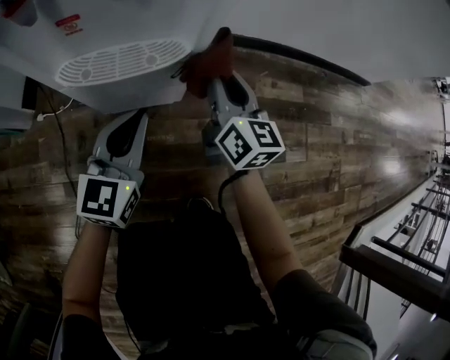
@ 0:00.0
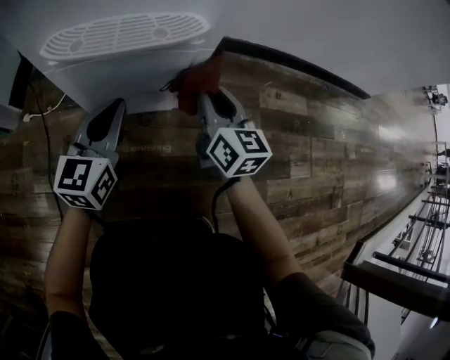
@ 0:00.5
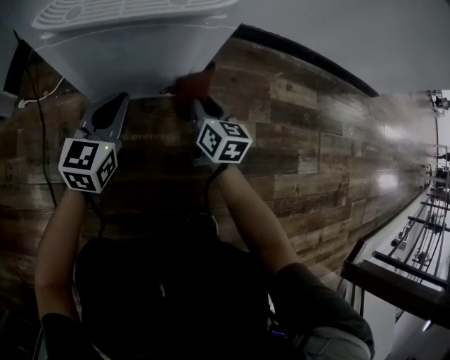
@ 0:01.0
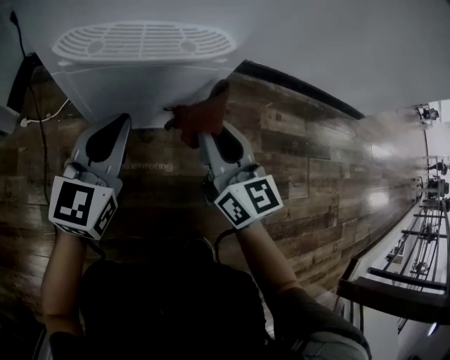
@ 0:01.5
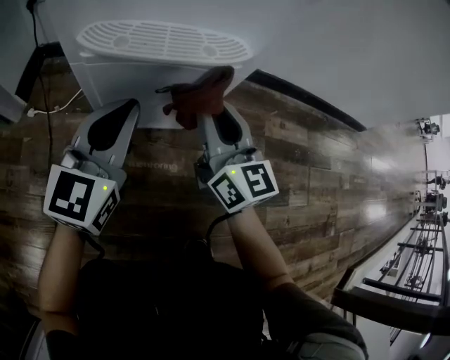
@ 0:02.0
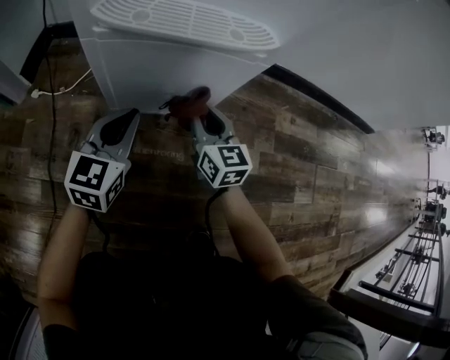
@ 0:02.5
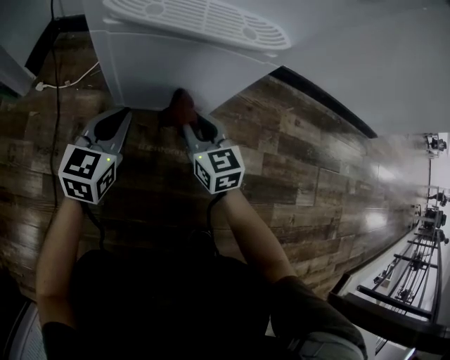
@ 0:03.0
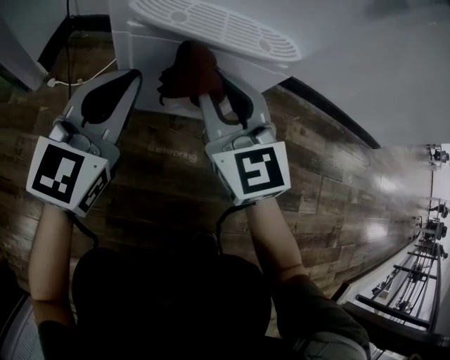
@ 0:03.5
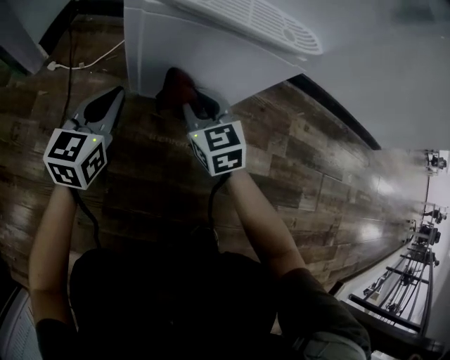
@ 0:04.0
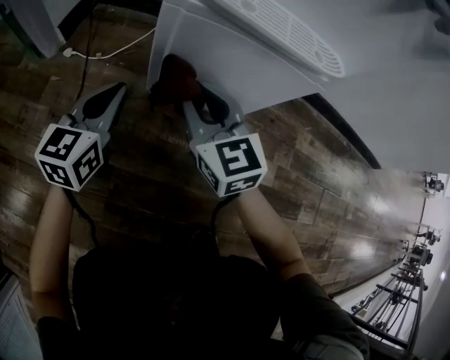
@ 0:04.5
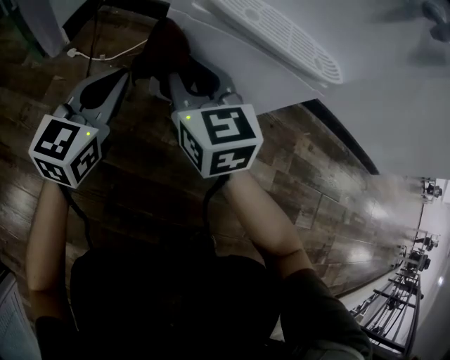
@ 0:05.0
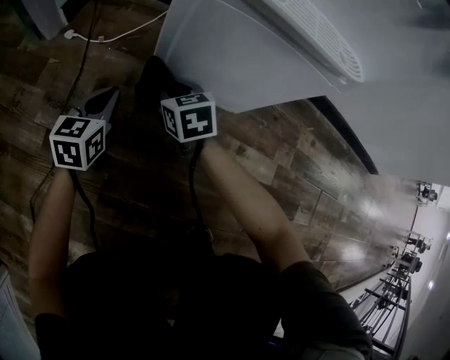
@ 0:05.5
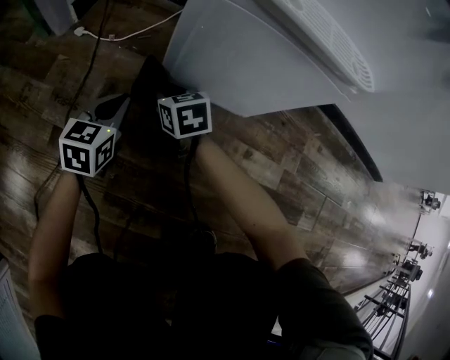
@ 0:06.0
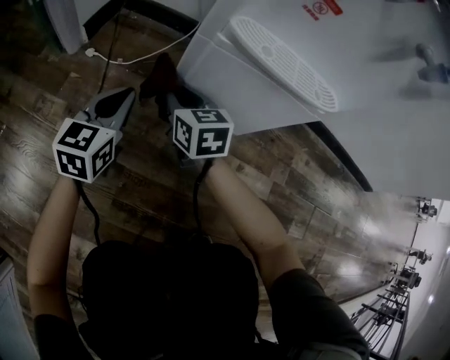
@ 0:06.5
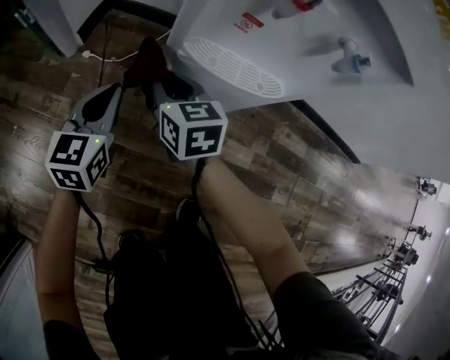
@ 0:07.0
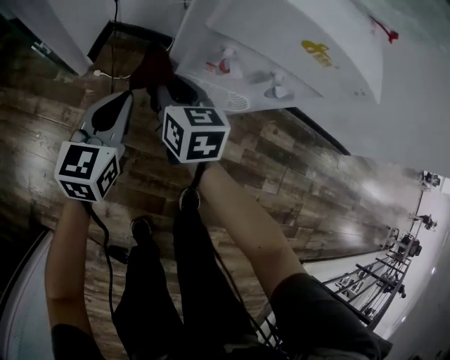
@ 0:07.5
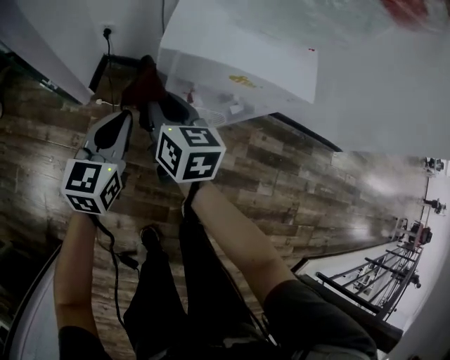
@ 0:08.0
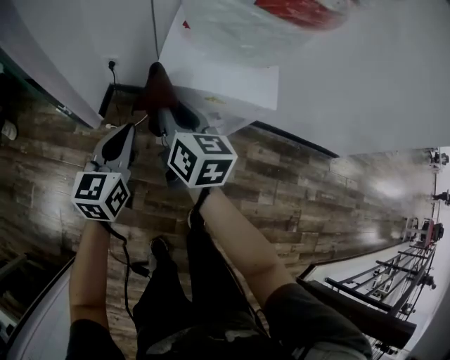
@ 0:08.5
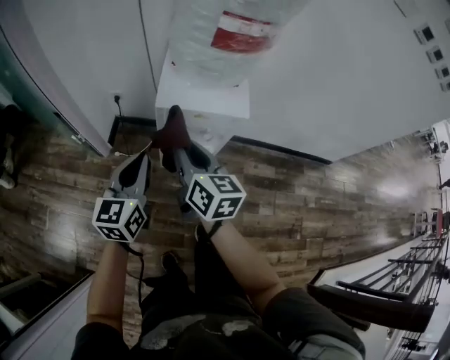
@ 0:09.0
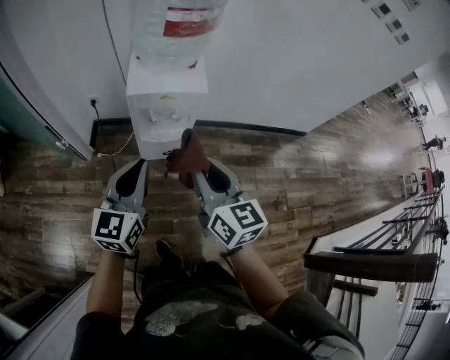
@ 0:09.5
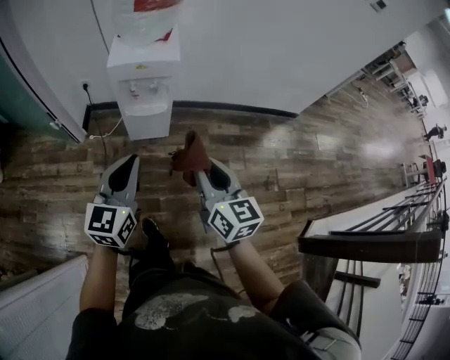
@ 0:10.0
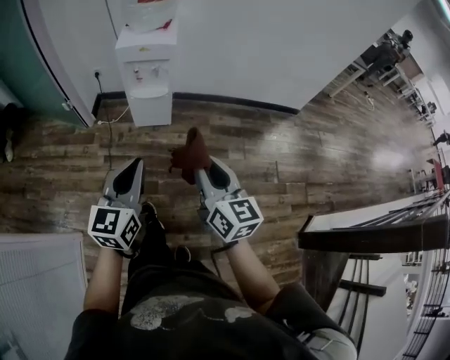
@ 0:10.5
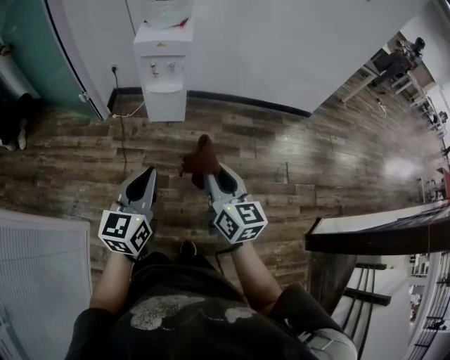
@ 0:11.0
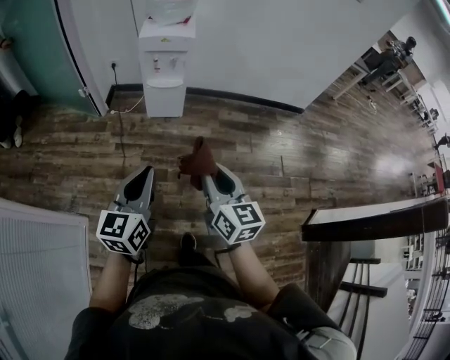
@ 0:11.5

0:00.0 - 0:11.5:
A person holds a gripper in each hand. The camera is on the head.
0:00.0 - 0:02.0: The two grippers go about 5 cm to the left. The right gripper goes downward and returns, some 25 cm each way. Meanwhile the left gripper goes downward and returns, about 20 cm each way.
0:02.0 - 0:04.0: The left gripper moves up and down over about 15 cm, changing direction 2 times, while the right gripper moves up and down over some 20 cm, changing direction 2 times, and rotates some 40 degrees.
0:04.0 - 0:06.0: The right gripper goes approximately 15 cm to the left and downward, and swivels approximately 20 degrees. The left gripper goes about 10 cm downward and to the left.
0:06.0 - 0:07.5: Both grippers travel together upward, about 50 cm. The right gripper turns by some 20 degrees.
0:07.5 - 0:09.5: The right gripper goes approximately 50 cm upward, backward and to the right, and turns by approximately 30 degrees. The left gripper moves upward and backward, about 40 cm, and rotates approximately 20 degrees.
0:09.5 - 0:11.5: The two grippers travel together, backward, about 40 cm.

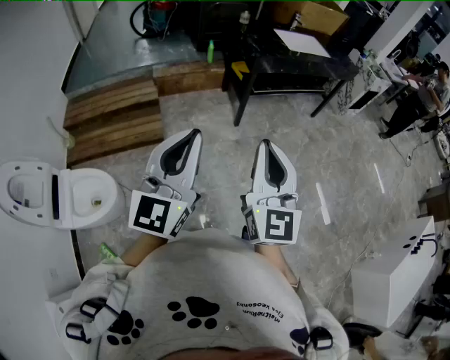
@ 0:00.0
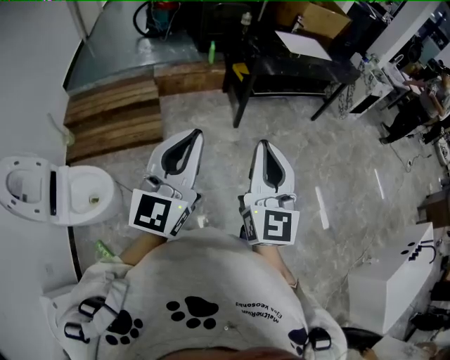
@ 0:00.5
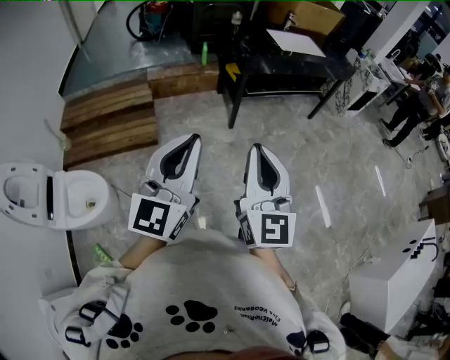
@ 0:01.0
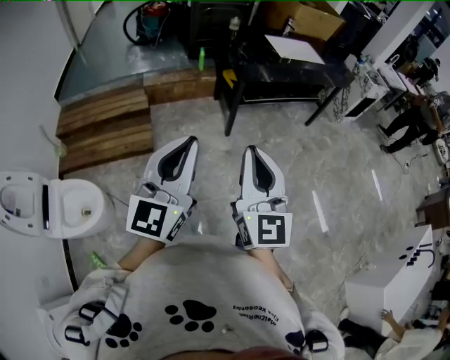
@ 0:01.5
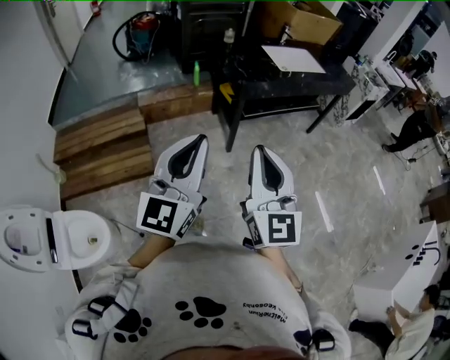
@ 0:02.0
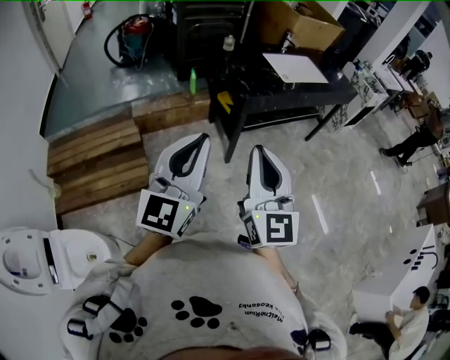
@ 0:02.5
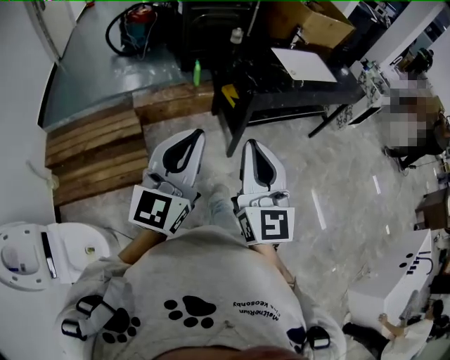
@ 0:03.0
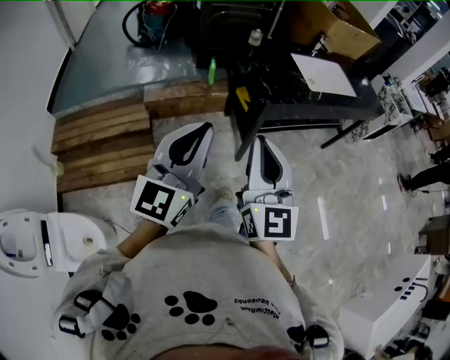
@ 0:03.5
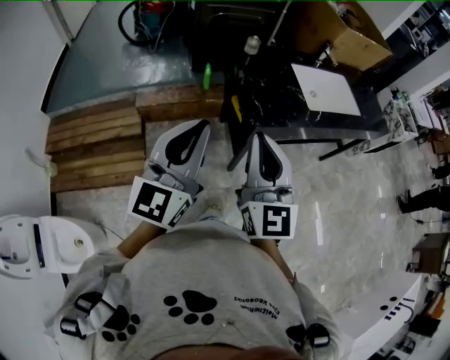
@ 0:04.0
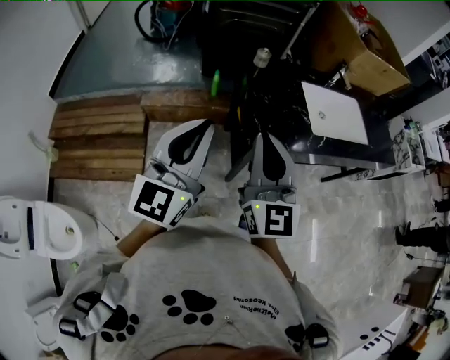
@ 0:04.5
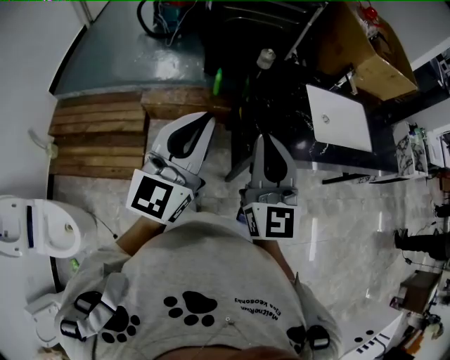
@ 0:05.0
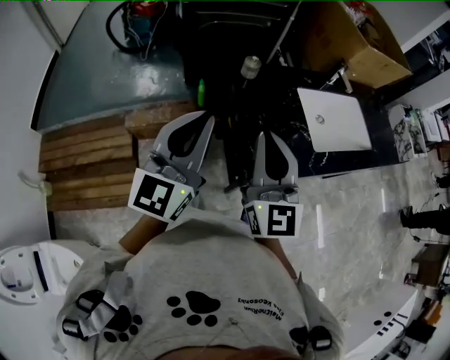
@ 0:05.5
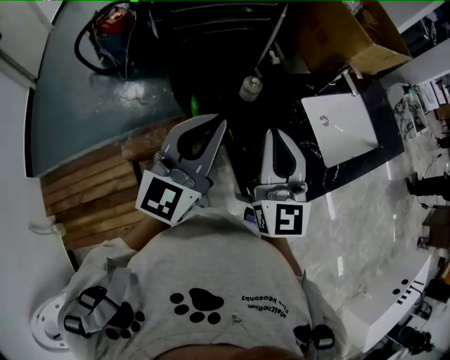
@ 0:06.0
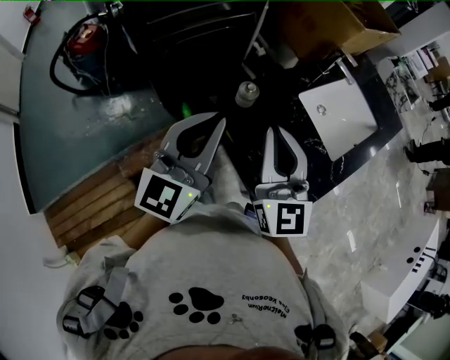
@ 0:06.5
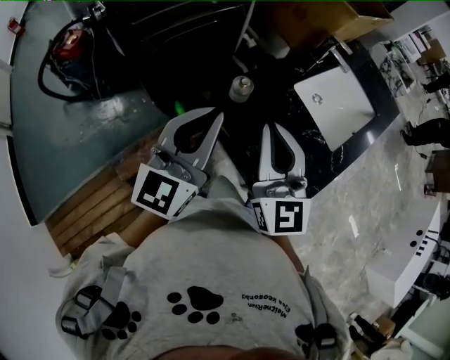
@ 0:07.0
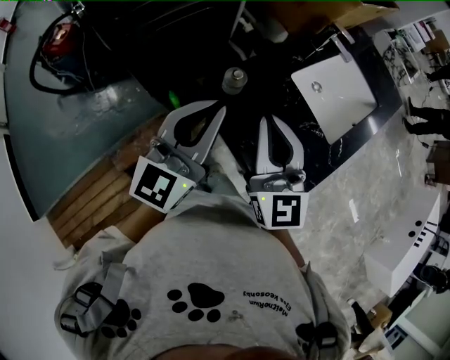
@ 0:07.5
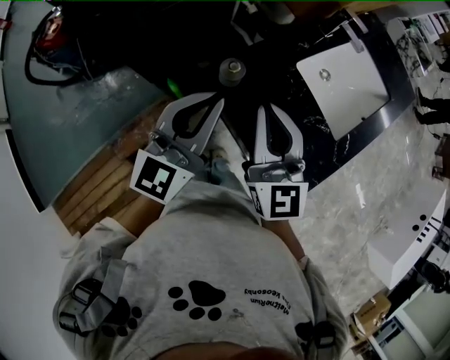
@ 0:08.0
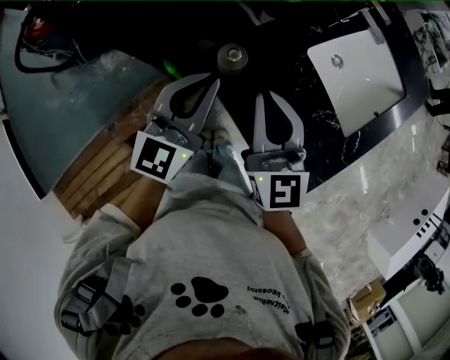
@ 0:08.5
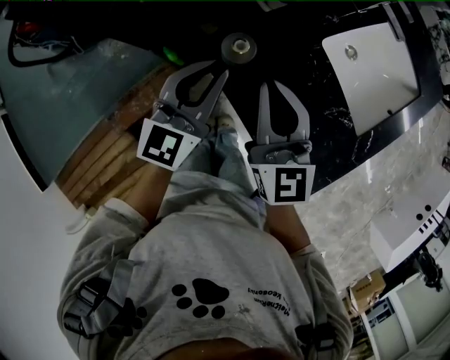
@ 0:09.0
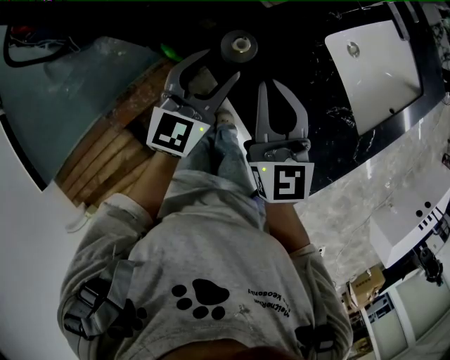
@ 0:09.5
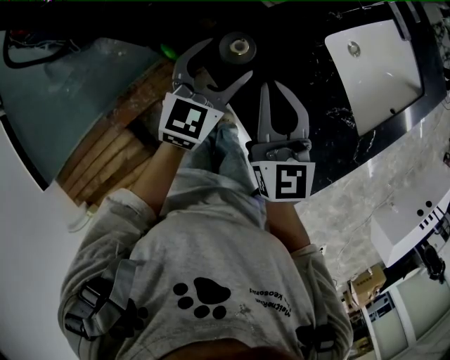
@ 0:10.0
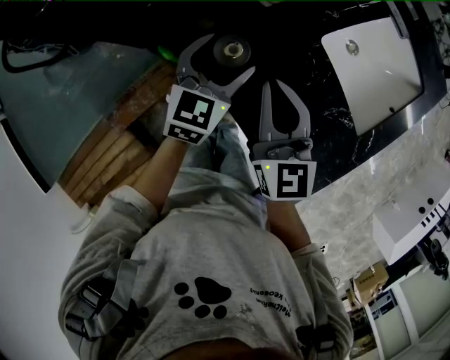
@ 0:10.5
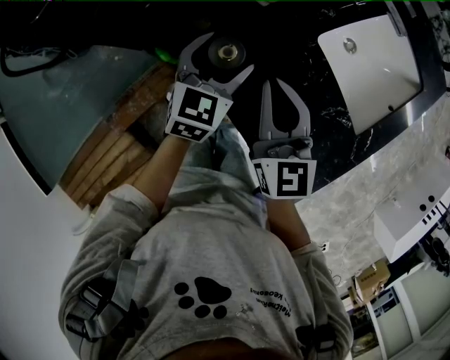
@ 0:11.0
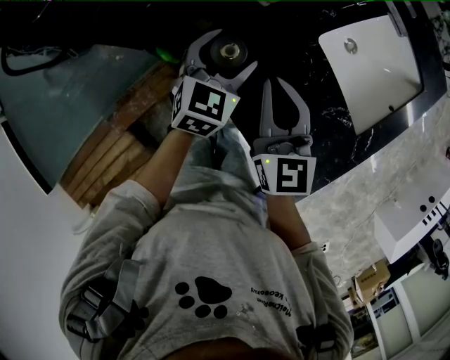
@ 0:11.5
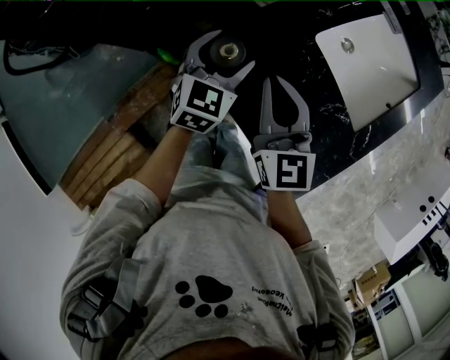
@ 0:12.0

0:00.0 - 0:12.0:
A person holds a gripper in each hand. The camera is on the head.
0:00.0 - 0:02.0: Both grippers travel together forward, about 20 cm.
0:02.0 - 0:04.0: Both grippers move forward, some 35 cm.
0:04.0 - 0:06.0: Both grippers move forward, approximately 40 cm.
0:06.0 - 0:08.0: Both grippers move forward and downward, approximately 15 cm.
0:08.0 - 0:10.0: The right gripper heads downward and forward, covering roughly 15 cm. Meanwhile the left gripper goes some 20 cm downward and forward, rotates approximately 20 degrees, and opens its fingers.
0:10.0 - 0:12.0: The grippers move only a little.

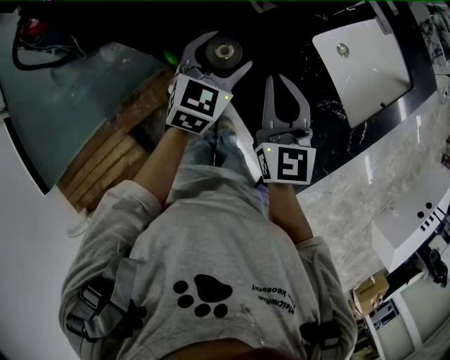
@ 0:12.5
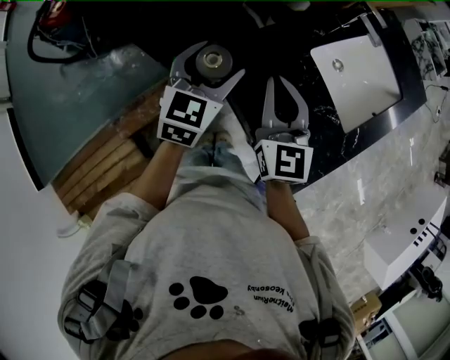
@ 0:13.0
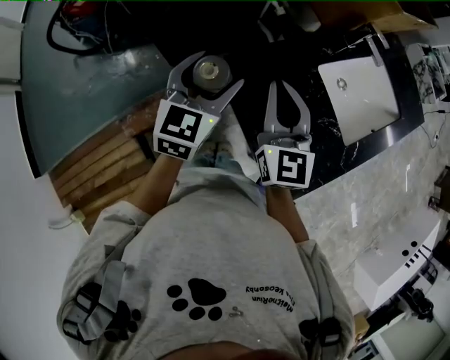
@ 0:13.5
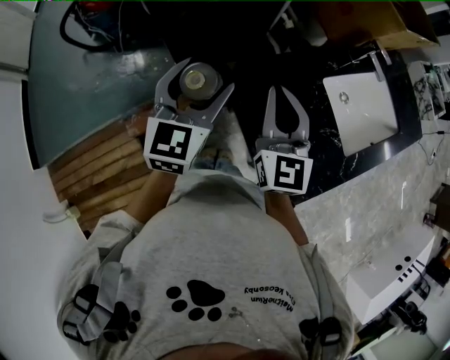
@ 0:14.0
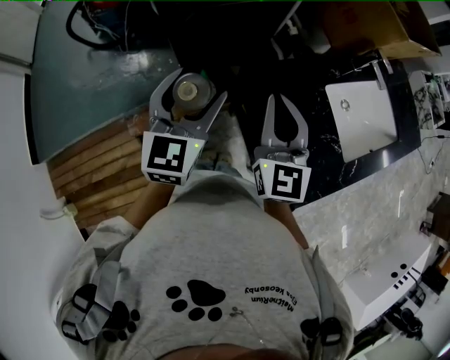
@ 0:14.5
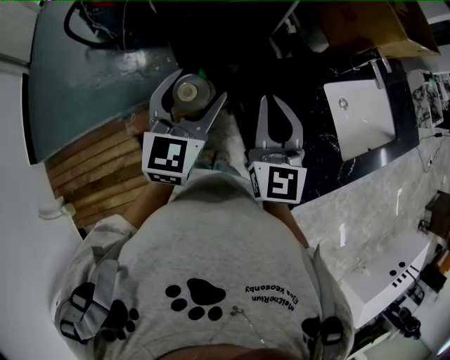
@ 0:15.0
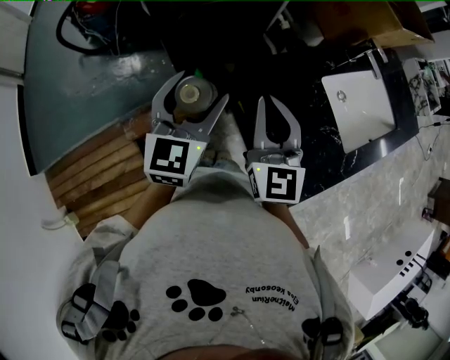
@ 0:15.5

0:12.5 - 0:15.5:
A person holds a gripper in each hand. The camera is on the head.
0:12.5 - 0:14.0: The right gripper travels upward, to the left and backward by some 15 cm. Meanwhile the left gripper shifts some 25 cm upward, to the left and backward, and rotates approximately 30 degrees.
0:14.0 - 0:15.5: The grippers stay close to where they were, moving slightly.
